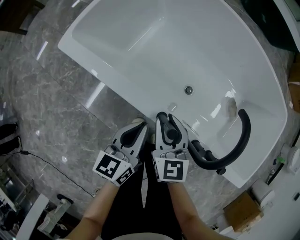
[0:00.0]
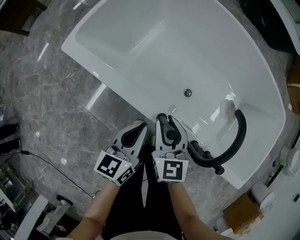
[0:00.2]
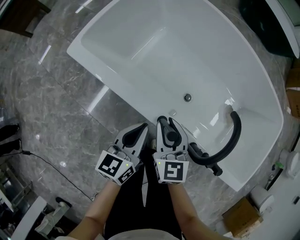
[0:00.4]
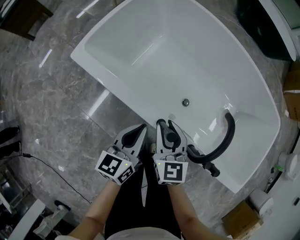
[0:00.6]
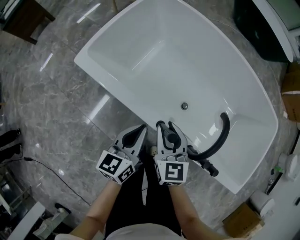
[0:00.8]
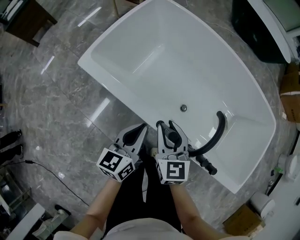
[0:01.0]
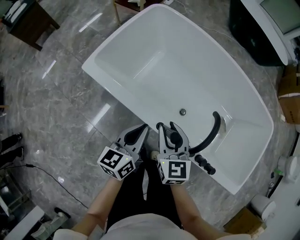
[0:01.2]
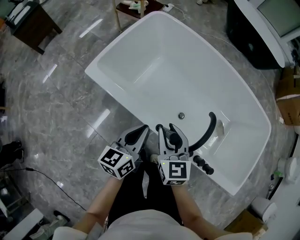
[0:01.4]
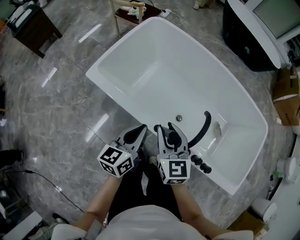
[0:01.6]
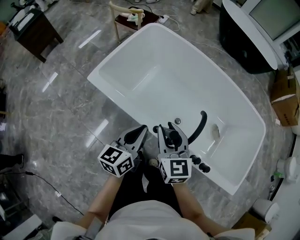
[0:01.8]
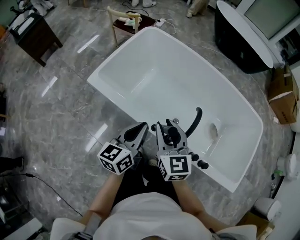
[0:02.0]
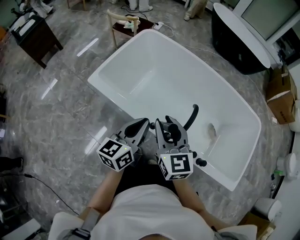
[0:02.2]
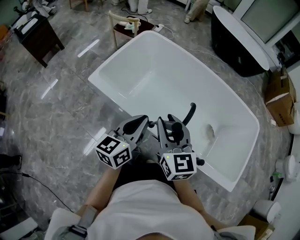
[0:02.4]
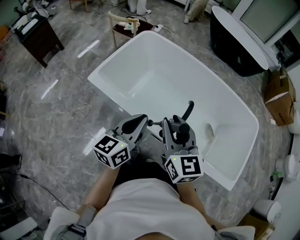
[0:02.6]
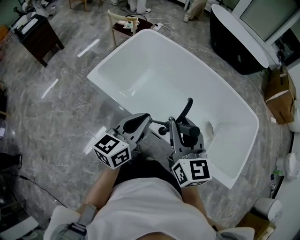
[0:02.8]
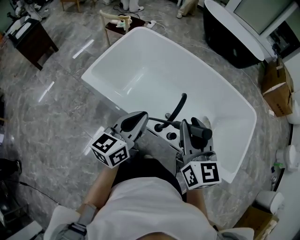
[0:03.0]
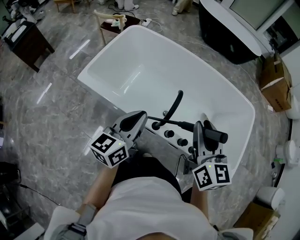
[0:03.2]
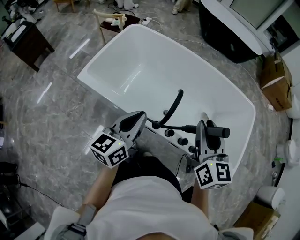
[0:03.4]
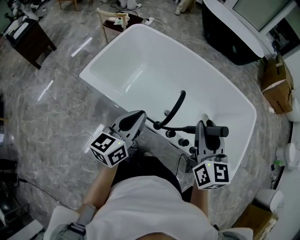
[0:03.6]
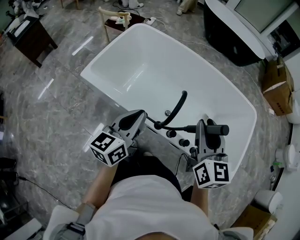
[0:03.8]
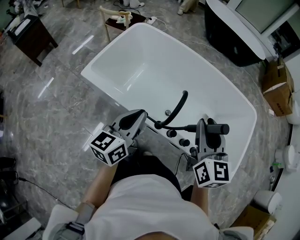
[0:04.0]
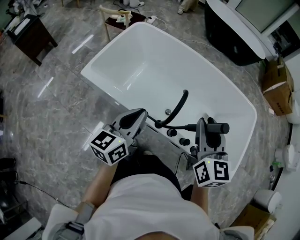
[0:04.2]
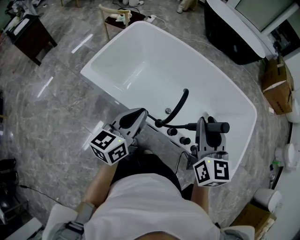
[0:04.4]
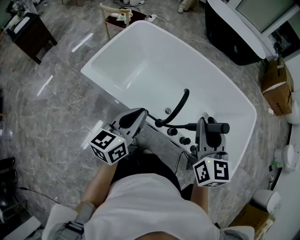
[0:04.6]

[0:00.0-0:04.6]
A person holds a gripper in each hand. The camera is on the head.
0:00.0 to 0:01.6: The two grippers go some 15 cm upward.
0:01.6 to 0:03.0: The two grippers go roughly 20 cm upward, to the right and backward.
0:03.0 to 0:04.6: The right gripper travels to the right by approximately 5 cm.

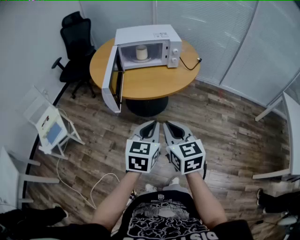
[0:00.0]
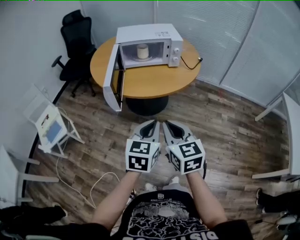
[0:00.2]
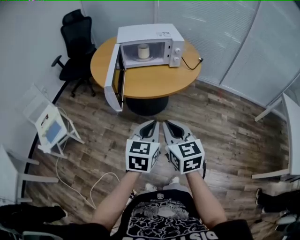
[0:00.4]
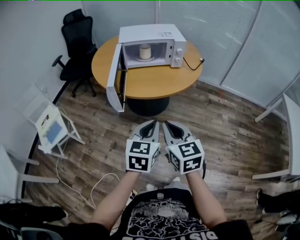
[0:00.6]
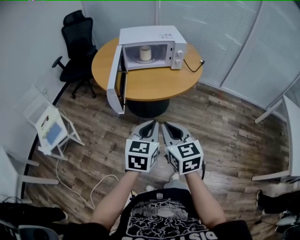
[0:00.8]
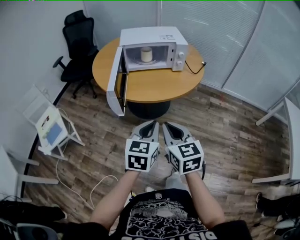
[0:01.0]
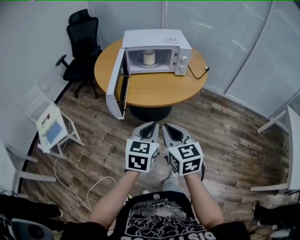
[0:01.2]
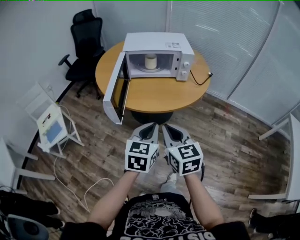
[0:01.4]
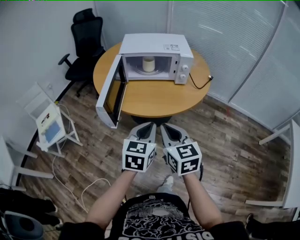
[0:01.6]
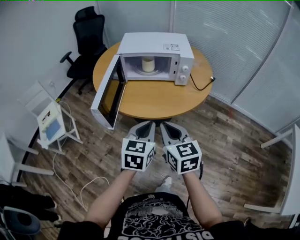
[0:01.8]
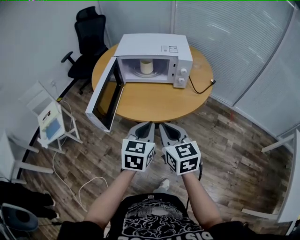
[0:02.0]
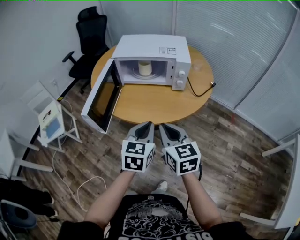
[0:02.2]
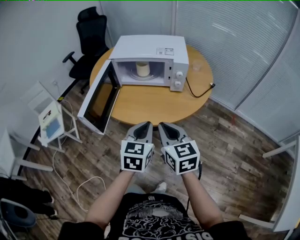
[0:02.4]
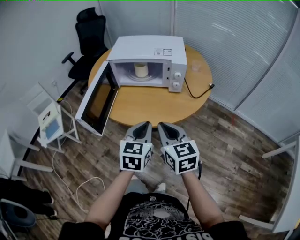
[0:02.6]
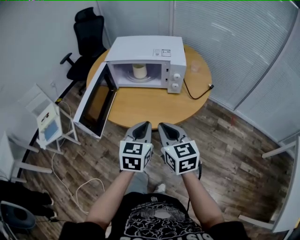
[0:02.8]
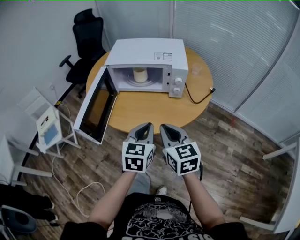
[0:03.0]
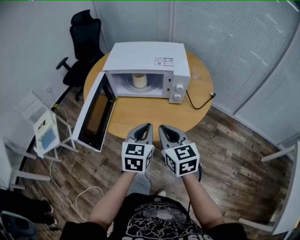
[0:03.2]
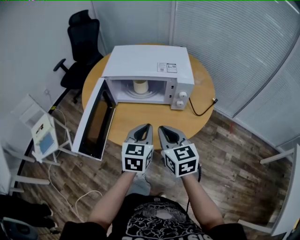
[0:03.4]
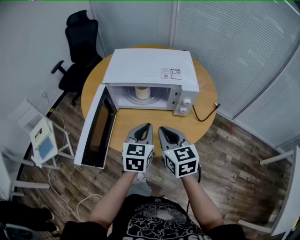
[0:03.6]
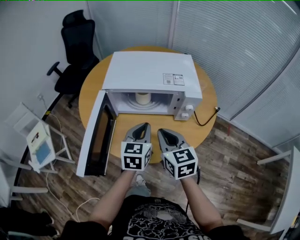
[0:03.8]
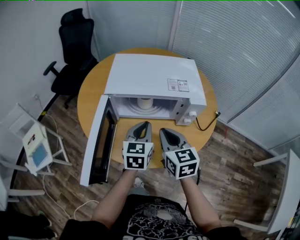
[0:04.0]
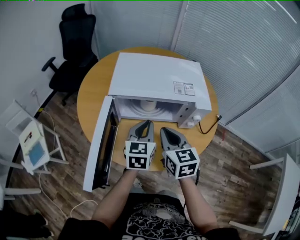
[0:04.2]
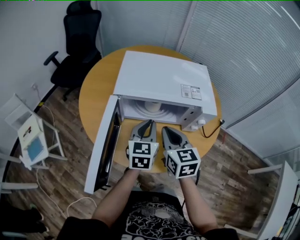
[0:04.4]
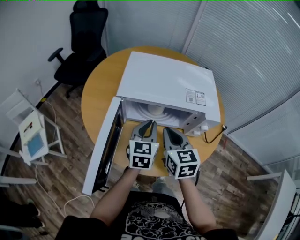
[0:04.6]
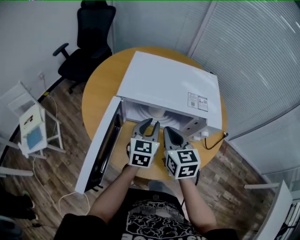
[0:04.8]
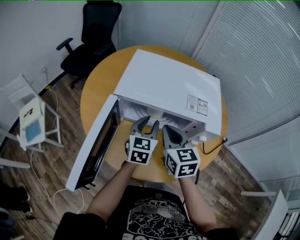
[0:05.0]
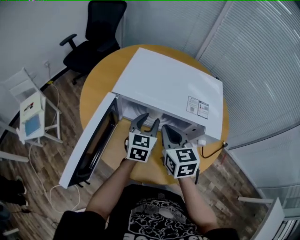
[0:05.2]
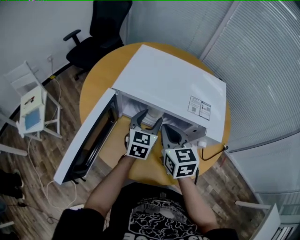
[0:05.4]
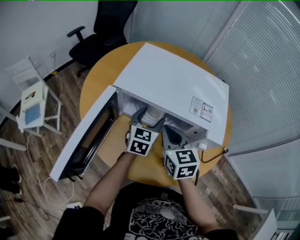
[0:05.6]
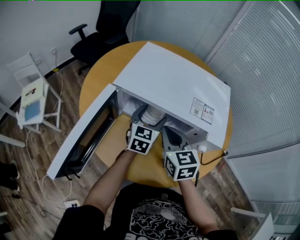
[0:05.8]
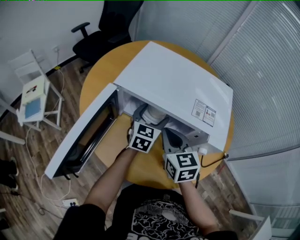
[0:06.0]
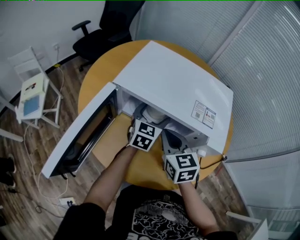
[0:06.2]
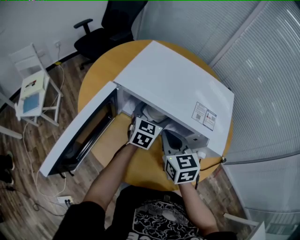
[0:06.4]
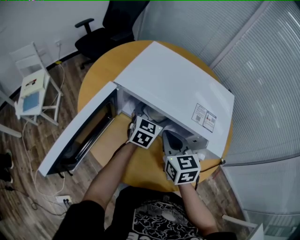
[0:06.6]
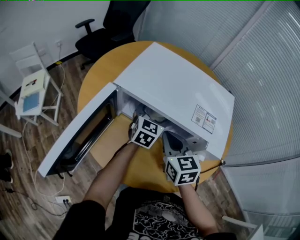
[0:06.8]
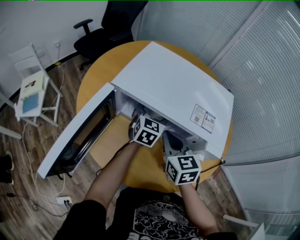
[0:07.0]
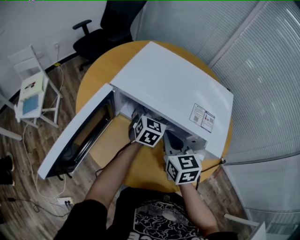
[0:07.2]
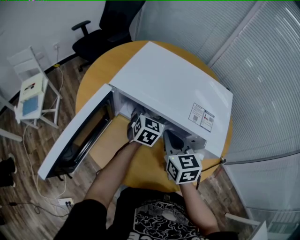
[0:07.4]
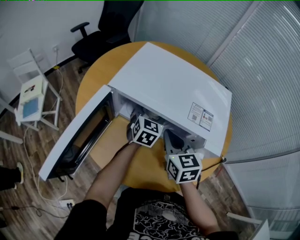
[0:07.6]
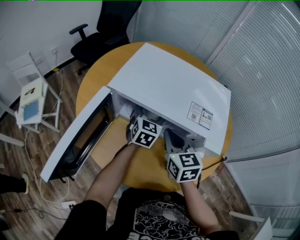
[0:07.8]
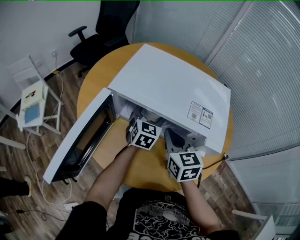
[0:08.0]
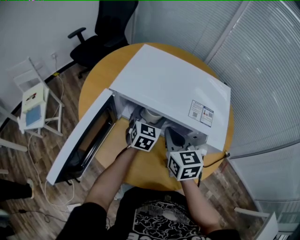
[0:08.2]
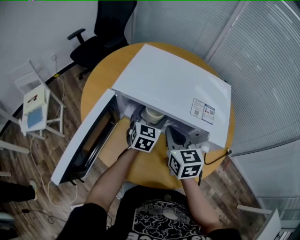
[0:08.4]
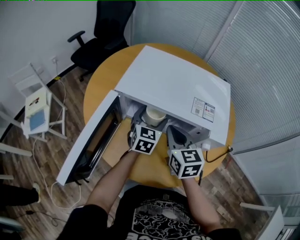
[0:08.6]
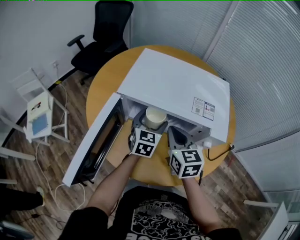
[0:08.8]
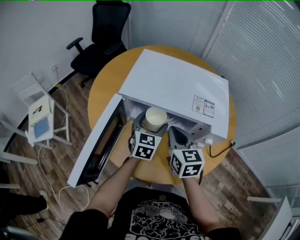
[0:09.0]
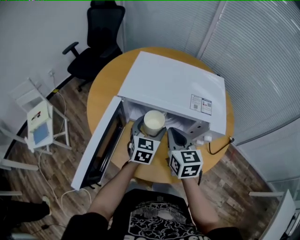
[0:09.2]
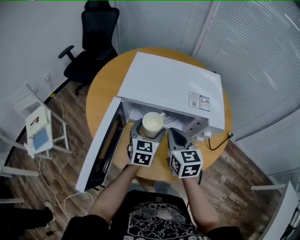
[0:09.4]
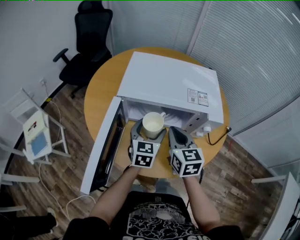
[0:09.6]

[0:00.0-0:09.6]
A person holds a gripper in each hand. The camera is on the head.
0:00.0 to 0:01.6: The grippers both shift forward by some 15 cm.
0:01.6 to 0:03.2: The two grippers go some 20 cm forward and to the right.
0:03.2 to 0:04.8: The grippers both shift forward by approximately 25 cm.
0:04.8 to 0:06.4: The right gripper is displaced downward by some 5 cm. The left gripper travels forward and downward by approximately 10 cm, and opens.
0:06.4 to 0:08.0: The grippers stay close to where they were, moving slightly.
0:08.0 to 0:09.6: The left gripper is displaced backward by approximately 10 cm. Meanwhile the right gripper heads backward, covering approximately 5 cm.

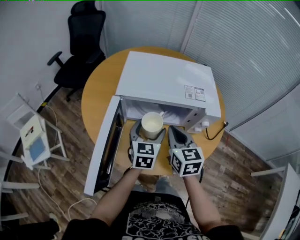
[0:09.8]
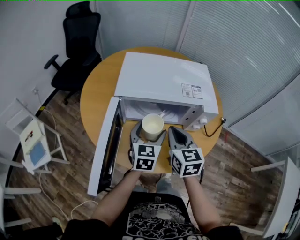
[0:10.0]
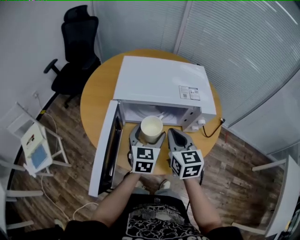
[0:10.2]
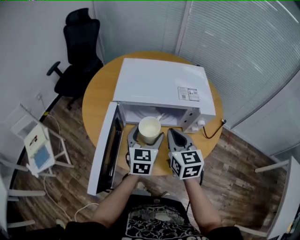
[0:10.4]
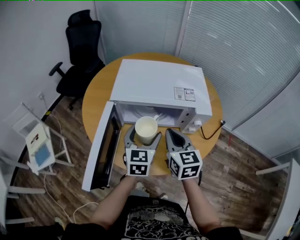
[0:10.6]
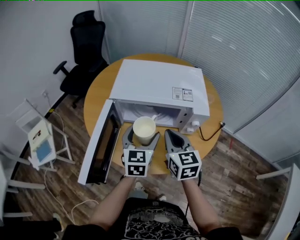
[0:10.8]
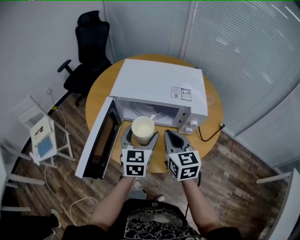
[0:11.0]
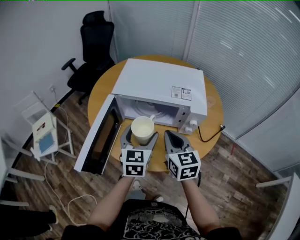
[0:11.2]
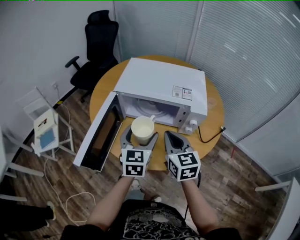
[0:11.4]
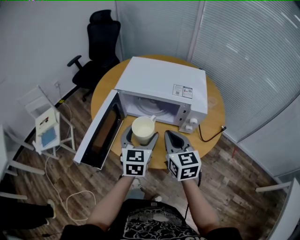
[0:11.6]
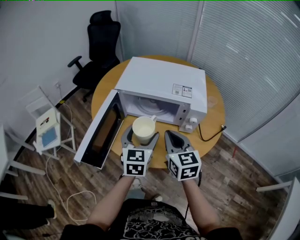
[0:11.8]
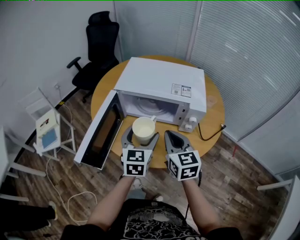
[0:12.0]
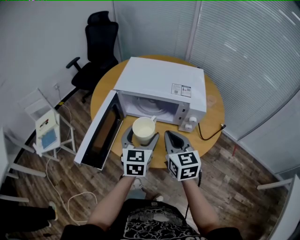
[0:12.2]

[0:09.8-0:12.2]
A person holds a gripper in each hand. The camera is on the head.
0:09.8 to 0:11.0: The left gripper is displaced upward and backward by approximately 10 cm; the right gripper changes place by about 5 cm.
0:11.0 to 0:12.2: There are only small adjustments of the grippers.

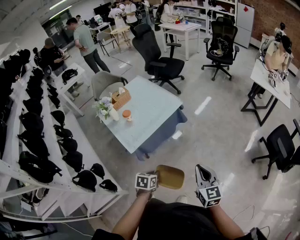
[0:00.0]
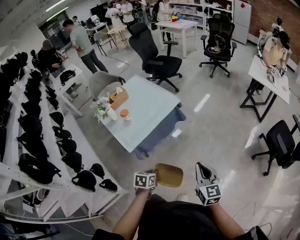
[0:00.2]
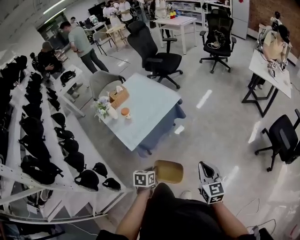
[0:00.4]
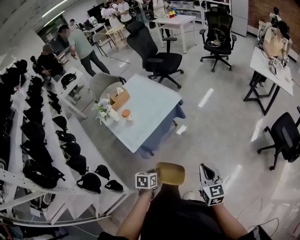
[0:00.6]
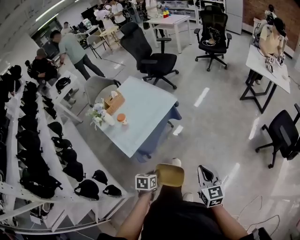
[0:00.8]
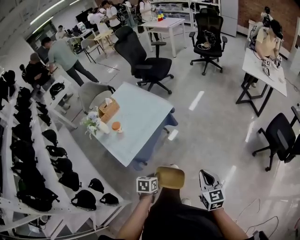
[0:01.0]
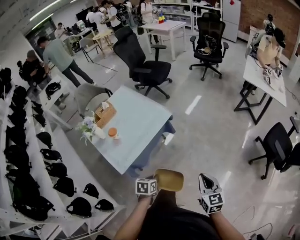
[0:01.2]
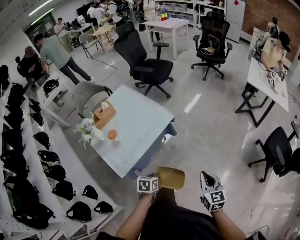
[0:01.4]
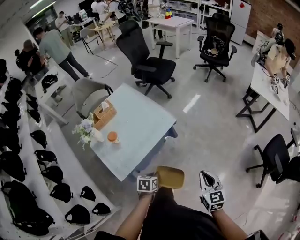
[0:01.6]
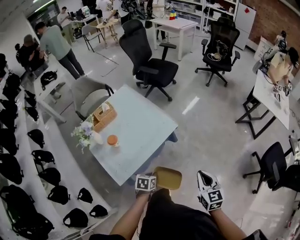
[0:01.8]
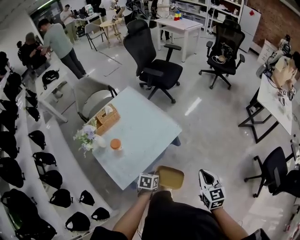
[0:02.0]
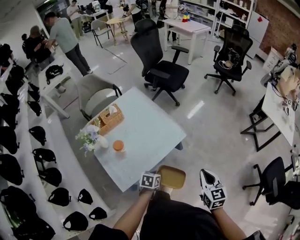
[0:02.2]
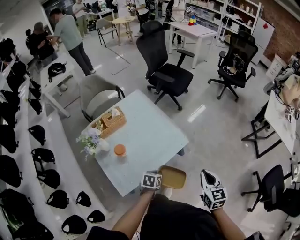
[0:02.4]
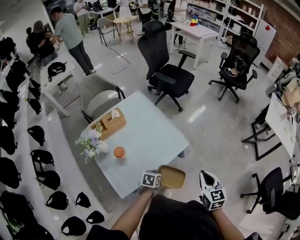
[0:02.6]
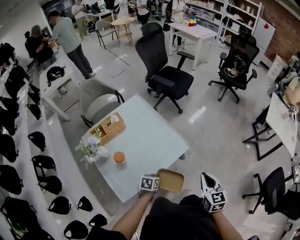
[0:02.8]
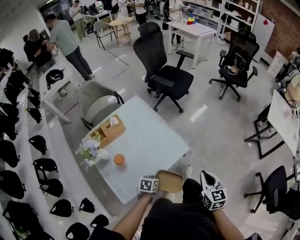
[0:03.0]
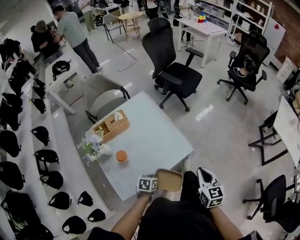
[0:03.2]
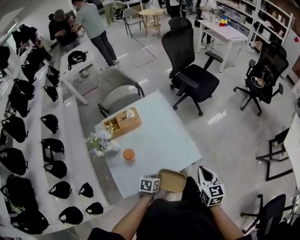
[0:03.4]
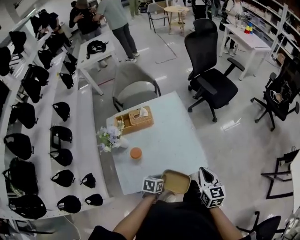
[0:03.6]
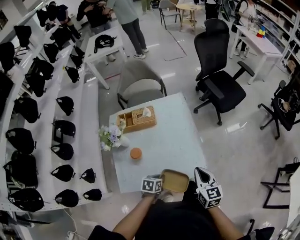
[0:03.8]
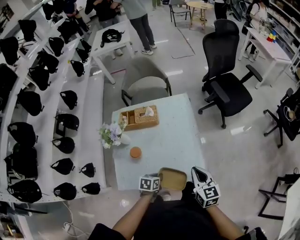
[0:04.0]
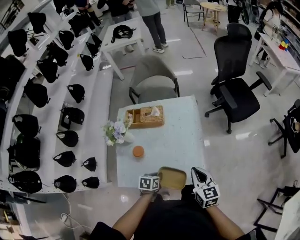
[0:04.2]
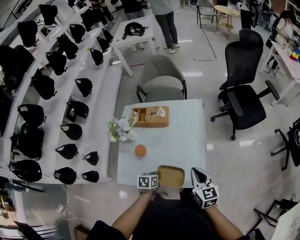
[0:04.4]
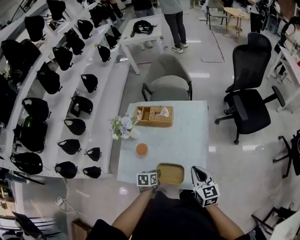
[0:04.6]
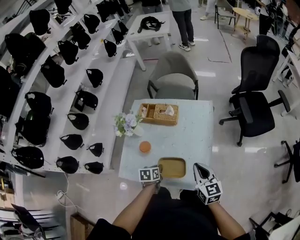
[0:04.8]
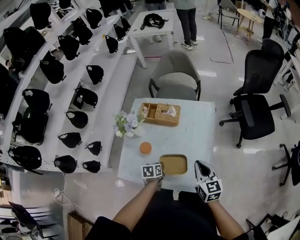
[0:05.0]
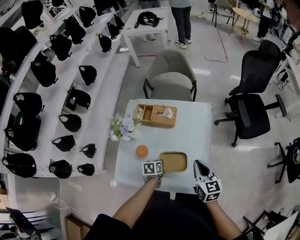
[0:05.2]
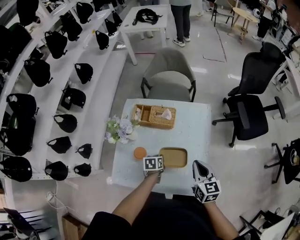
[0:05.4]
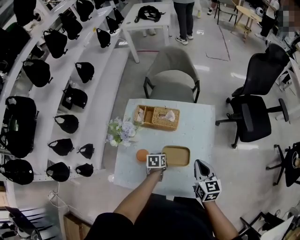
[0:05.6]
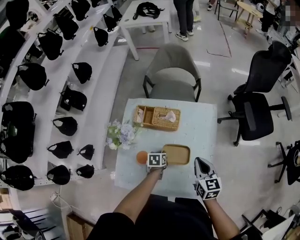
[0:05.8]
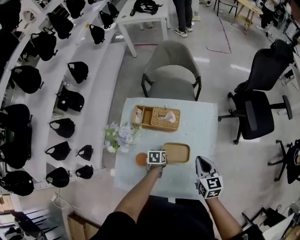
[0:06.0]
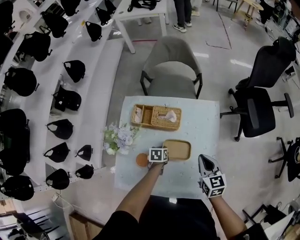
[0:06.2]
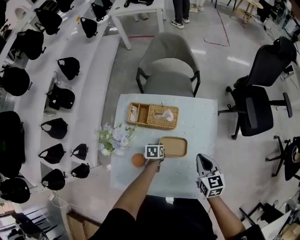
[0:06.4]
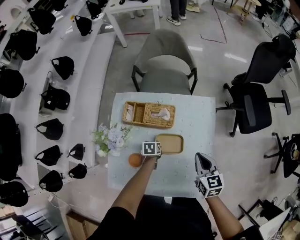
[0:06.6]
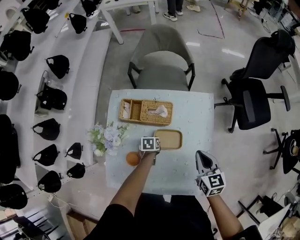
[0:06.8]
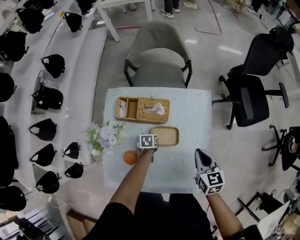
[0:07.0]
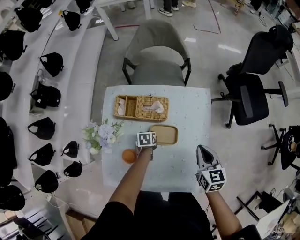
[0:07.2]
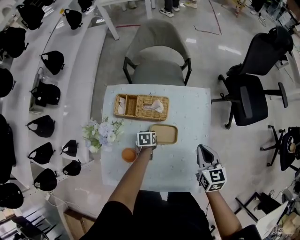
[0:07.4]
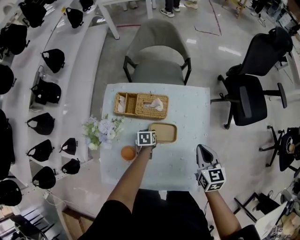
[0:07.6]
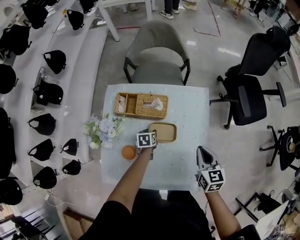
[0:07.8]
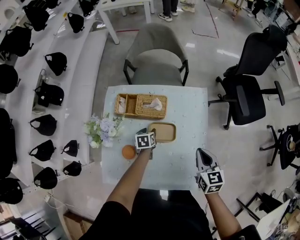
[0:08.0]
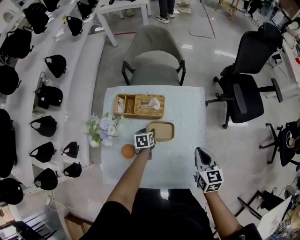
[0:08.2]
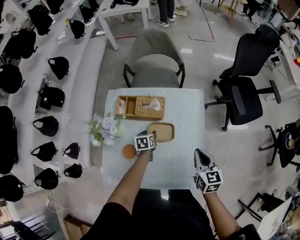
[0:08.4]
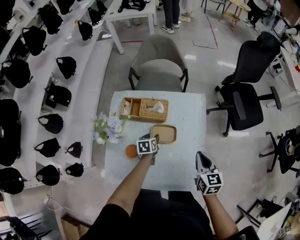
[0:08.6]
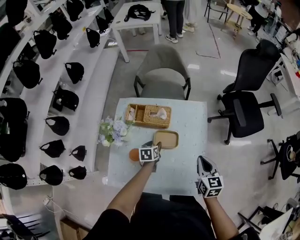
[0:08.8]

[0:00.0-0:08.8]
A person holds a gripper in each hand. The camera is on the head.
0:00.0 to 0:01.4: The two grippers go about 20 cm forward.
0:01.4 to 0:03.0: The two grippers go about 30 cm forward and to the left.
0:03.0 to 0:04.4: The left gripper moves roughly 15 cm, and rotates around the line of its fingers by about 40 degrees, counterclockwise from behind. Meanwhile the right gripper shifts by roughly 30 cm, and swivels approximately 50 degrees.
0:04.4 to 0:05.8: The right gripper heads forward, covering about 20 cm. The left gripper travels forward and downward by roughly 25 cm.
0:05.8 to 0:07.4: The left gripper moves downward and forward, roughly 15 cm. Meanwhile the right gripper moves forward and downward, approximately 10 cm.
0:07.4 to 0:08.8: The right gripper heads backward and upward, covering some 10 cm; the left gripper goes approximately 15 cm upward and backward, and opens its fingers.
